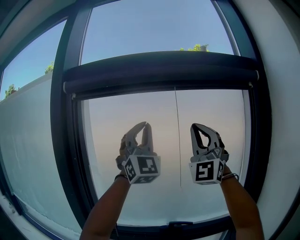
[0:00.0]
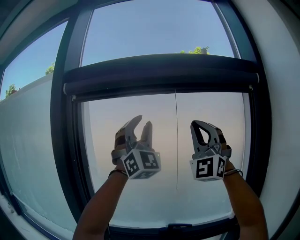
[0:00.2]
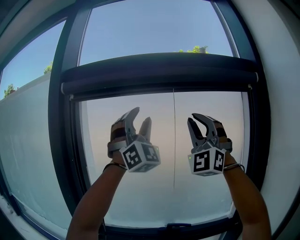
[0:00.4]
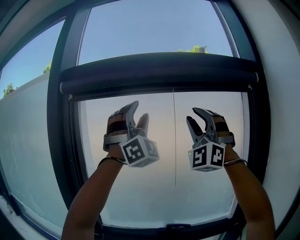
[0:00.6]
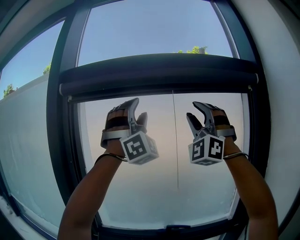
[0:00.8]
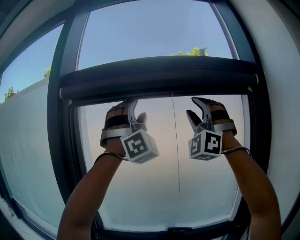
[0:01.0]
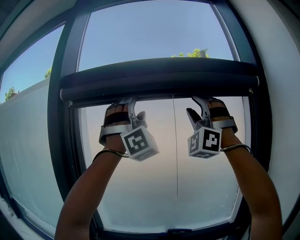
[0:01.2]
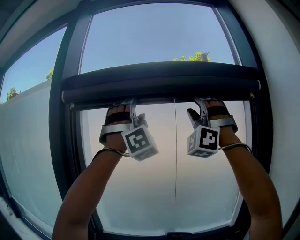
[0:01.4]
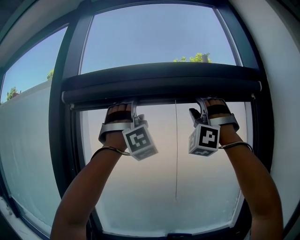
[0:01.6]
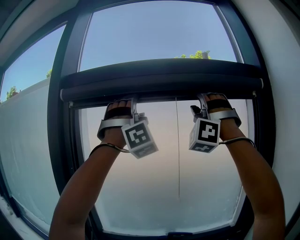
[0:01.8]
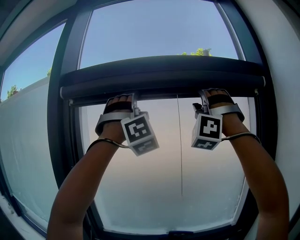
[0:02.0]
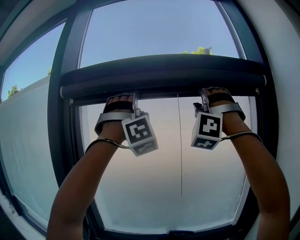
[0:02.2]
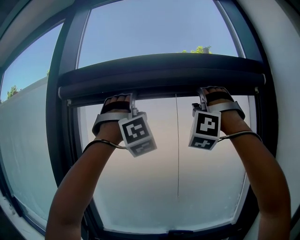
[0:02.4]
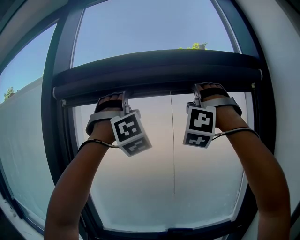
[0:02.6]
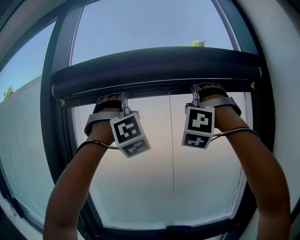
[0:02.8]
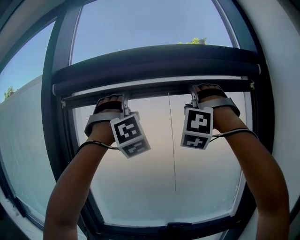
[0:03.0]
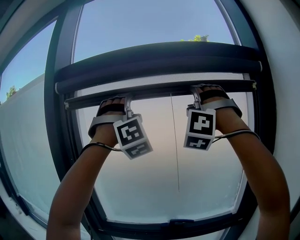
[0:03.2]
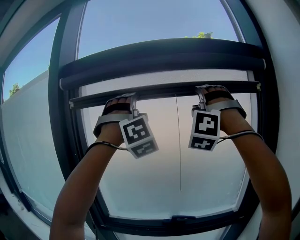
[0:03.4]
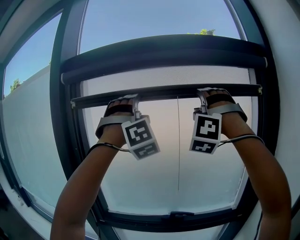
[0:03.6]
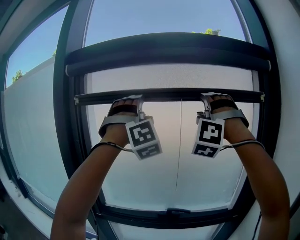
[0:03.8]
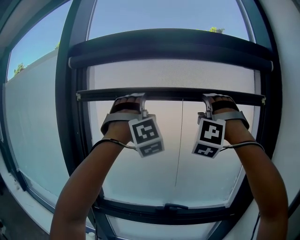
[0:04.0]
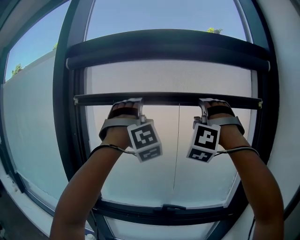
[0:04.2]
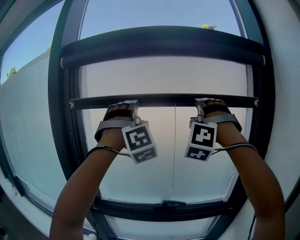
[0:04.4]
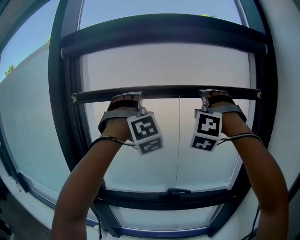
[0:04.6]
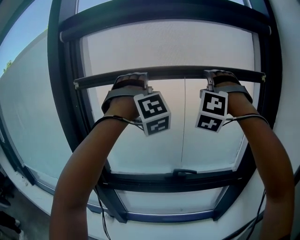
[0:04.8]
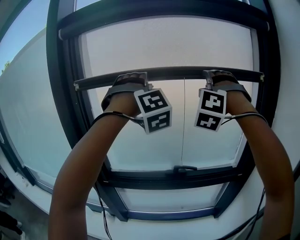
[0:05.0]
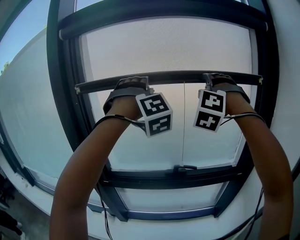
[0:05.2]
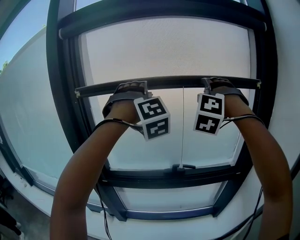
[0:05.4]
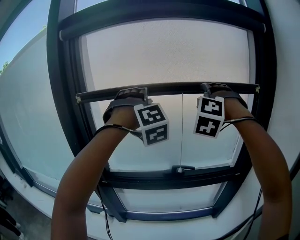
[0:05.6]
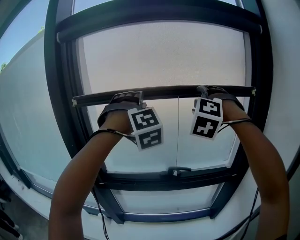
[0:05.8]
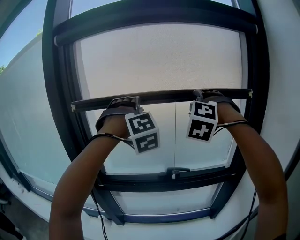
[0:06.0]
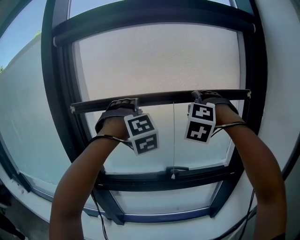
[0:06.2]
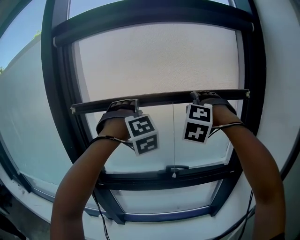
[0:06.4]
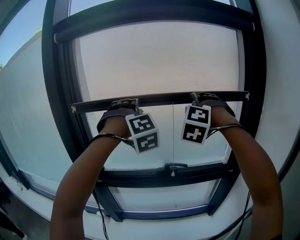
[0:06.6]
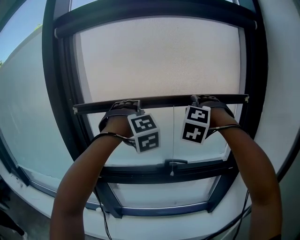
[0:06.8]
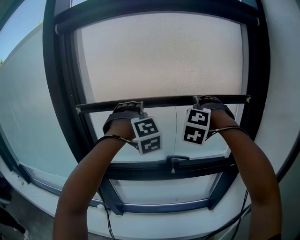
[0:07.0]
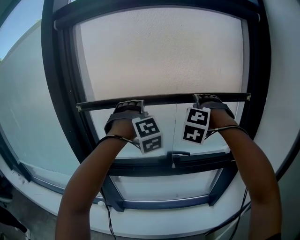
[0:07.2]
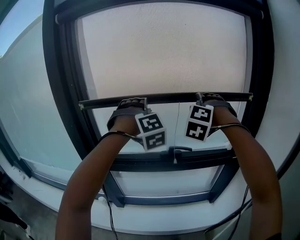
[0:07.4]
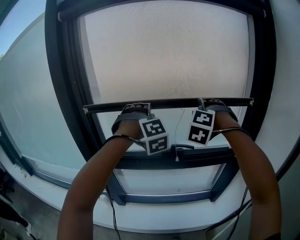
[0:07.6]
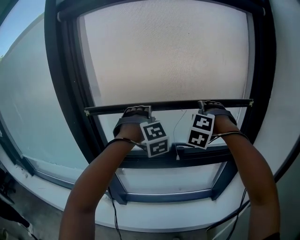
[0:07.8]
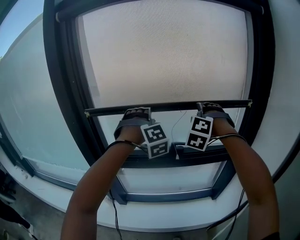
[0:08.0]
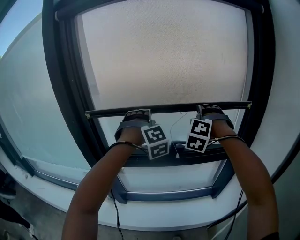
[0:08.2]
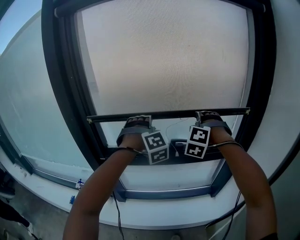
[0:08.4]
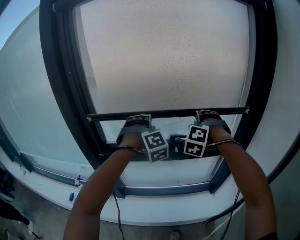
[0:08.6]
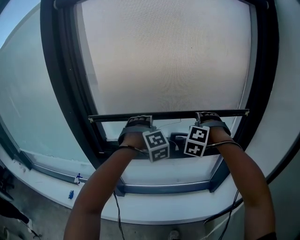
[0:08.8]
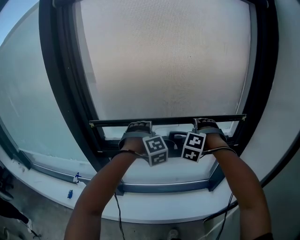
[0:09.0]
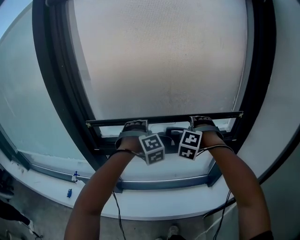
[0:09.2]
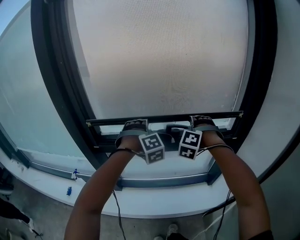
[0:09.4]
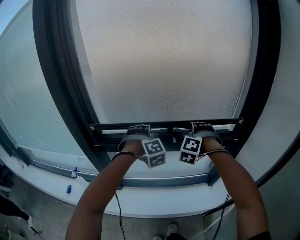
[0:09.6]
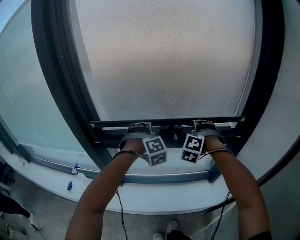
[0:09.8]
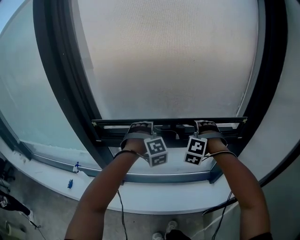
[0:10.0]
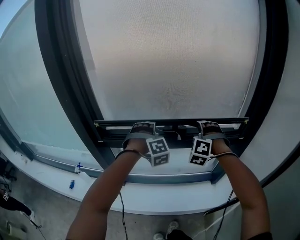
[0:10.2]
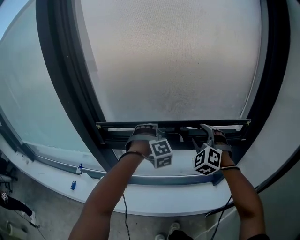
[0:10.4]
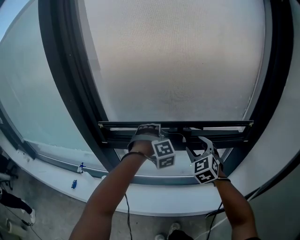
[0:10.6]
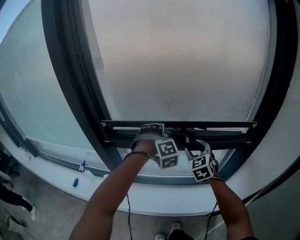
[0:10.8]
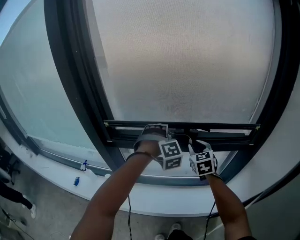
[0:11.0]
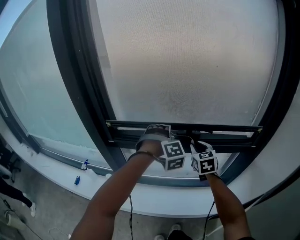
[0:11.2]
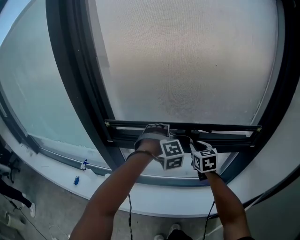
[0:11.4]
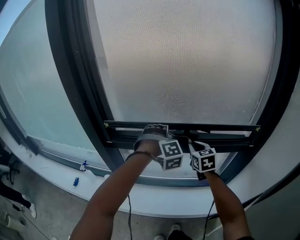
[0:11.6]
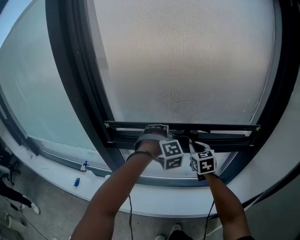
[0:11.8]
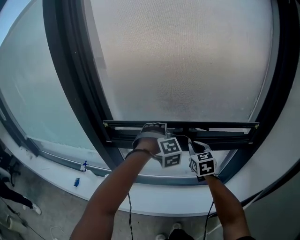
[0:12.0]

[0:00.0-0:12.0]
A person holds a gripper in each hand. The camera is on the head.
0:00.0 to 0:01.6: The right gripper travels upward and forward by approximately 15 cm, rotates around the line of its fingers by approximately 40 degrees, counterclockwise from behind, and opens up. The left gripper is displaced upward by roughly 10 cm, rotates around the line of its fingers by roughly 40 degrees, clockwise from behind, and opens up.
0:01.6 to 0:03.0: The grippers move only a little.
0:03.0 to 0:04.4: The two grippers go about 15 cm downward.
0:04.4 to 0:06.0: Both grippers travel together downward, some 10 cm. The right gripper swivels roughly 20 degrees, while the left gripper rotates some 20 degrees.
0:06.0 to 0:07.6: Both grippers travel together downward, approximately 15 cm.
0:07.6 to 0:09.0: The grippers both shift downward by roughly 15 cm.
0:09.0 to 0:10.4: The right gripper ends up roughly 5 cm from where it was, and rotates roughly 30 degrees, while the left gripper heads downward, covering about 5 cm.
0:10.4 to 0:12.0: The right gripper moves downward, roughly 10 cm, rotates around the line of its fingers by roughly 50 degrees, clockwise from behind, and closes.

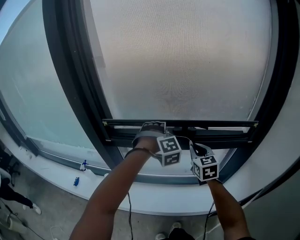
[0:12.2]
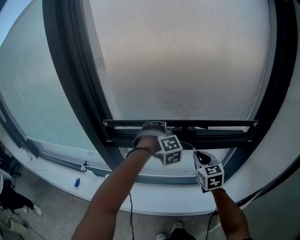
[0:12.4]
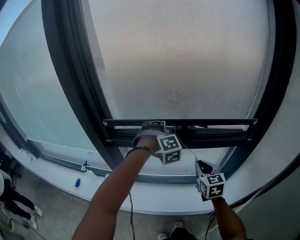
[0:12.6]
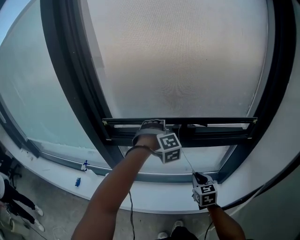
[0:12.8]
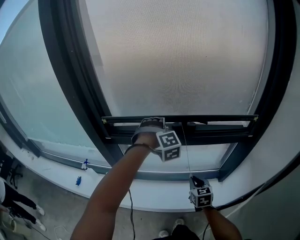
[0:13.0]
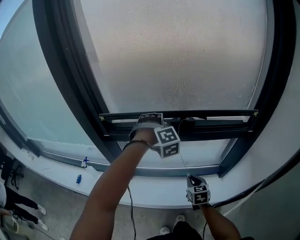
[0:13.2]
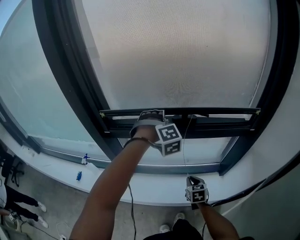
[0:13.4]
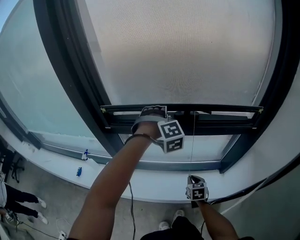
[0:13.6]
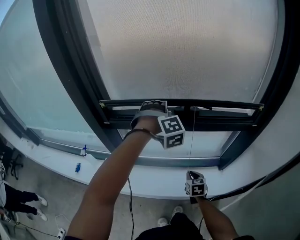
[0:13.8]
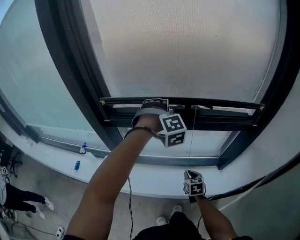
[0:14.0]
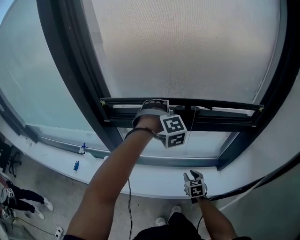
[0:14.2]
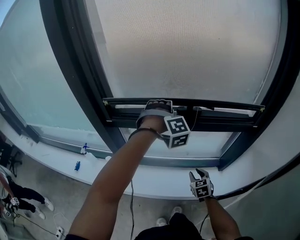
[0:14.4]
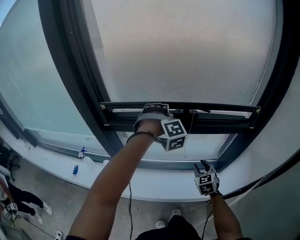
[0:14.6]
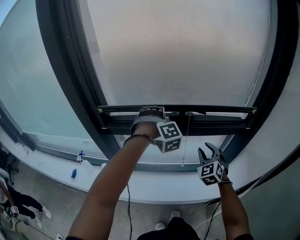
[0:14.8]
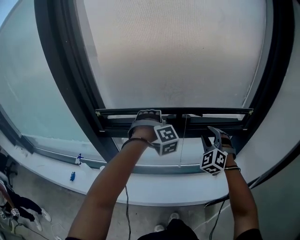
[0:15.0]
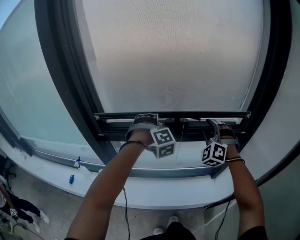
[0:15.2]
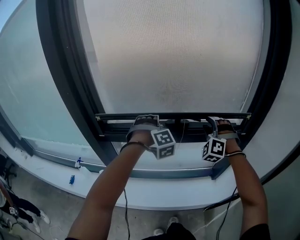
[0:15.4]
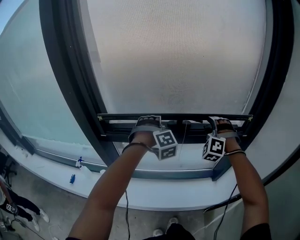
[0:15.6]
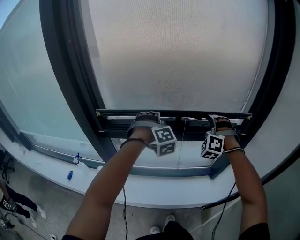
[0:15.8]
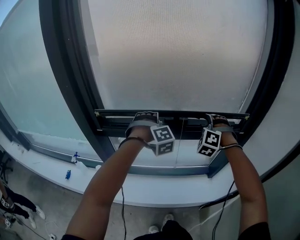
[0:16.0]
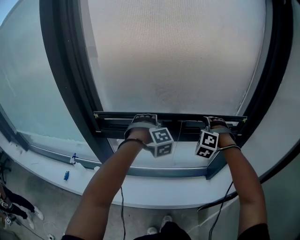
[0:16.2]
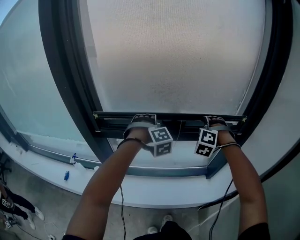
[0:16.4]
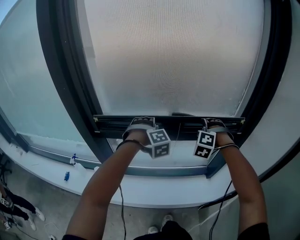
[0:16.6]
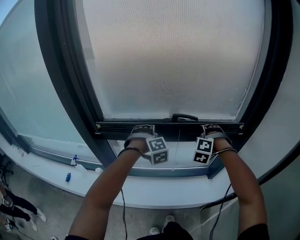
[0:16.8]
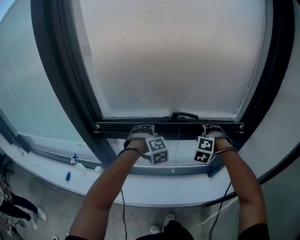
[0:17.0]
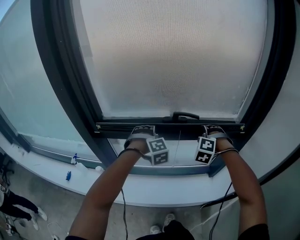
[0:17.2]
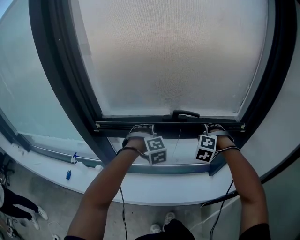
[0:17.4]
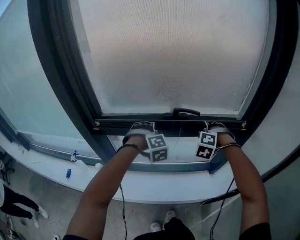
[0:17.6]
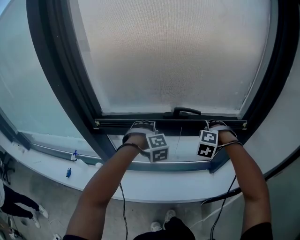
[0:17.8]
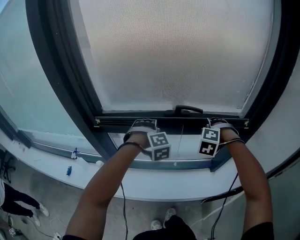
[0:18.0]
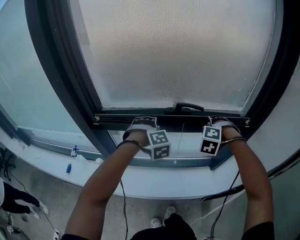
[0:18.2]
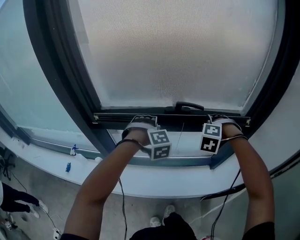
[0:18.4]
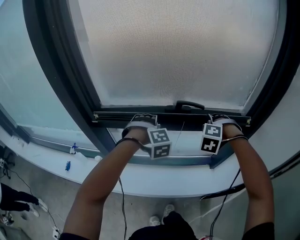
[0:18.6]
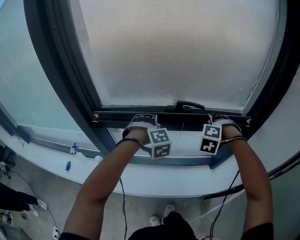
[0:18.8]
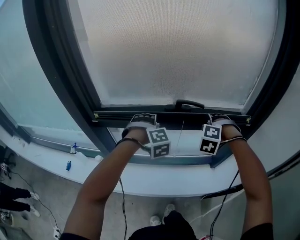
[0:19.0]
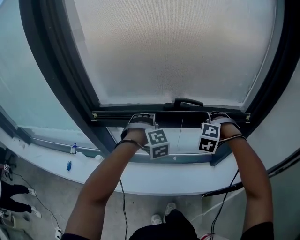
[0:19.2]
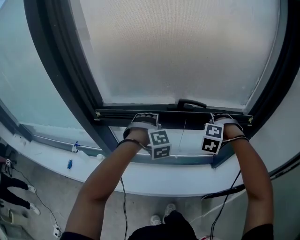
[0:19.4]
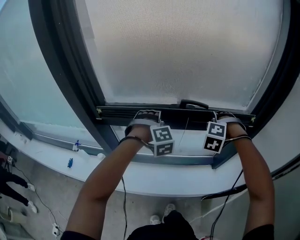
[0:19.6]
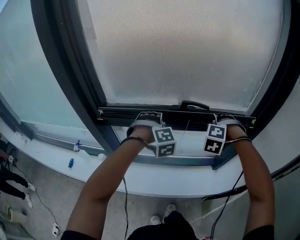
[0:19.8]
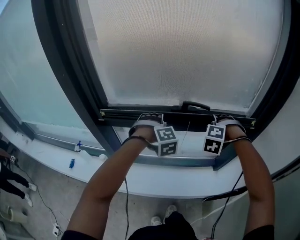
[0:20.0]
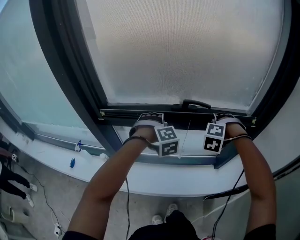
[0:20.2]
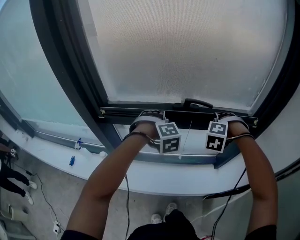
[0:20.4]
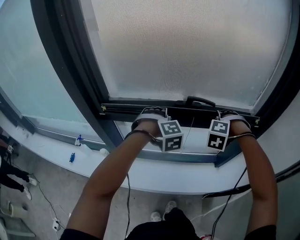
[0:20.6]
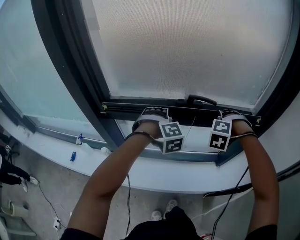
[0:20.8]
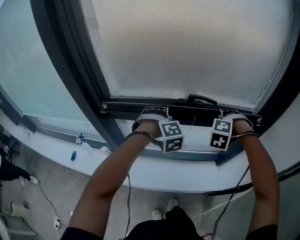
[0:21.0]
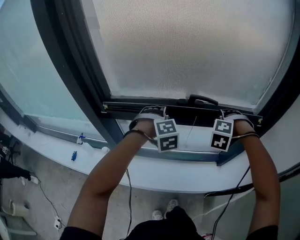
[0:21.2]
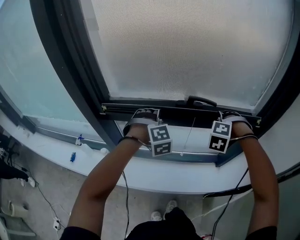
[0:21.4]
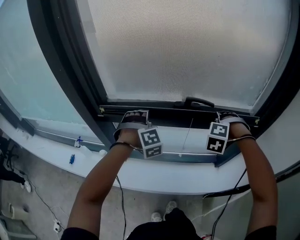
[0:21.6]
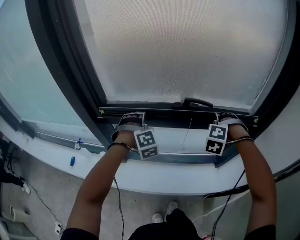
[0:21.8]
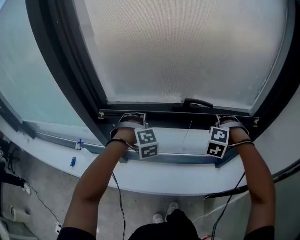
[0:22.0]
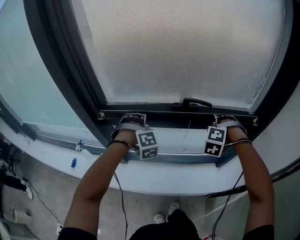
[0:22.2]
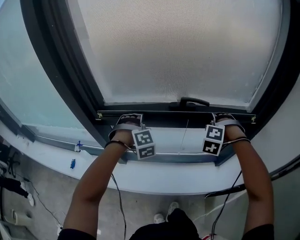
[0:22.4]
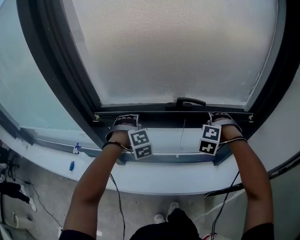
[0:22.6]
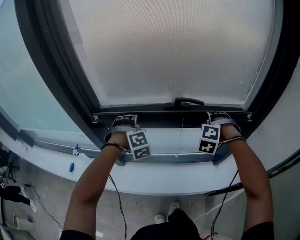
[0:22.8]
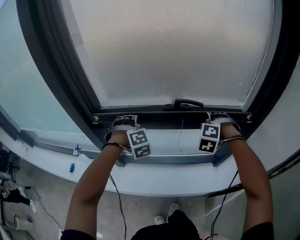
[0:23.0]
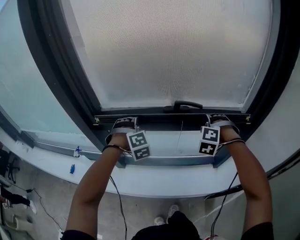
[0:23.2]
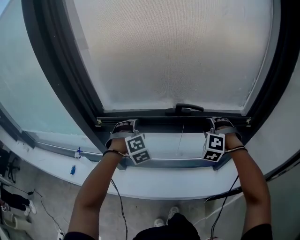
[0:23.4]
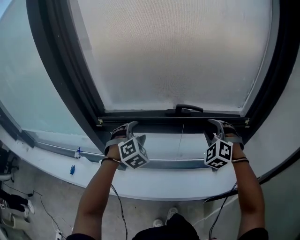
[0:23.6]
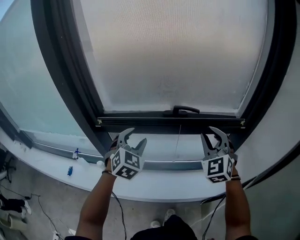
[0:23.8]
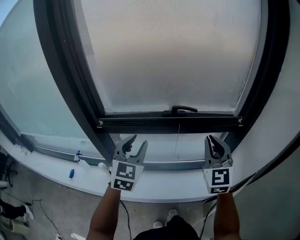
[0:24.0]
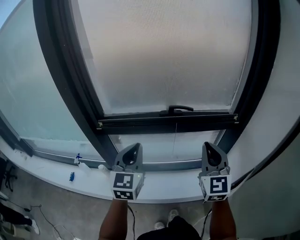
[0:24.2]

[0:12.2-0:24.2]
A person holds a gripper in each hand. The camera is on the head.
0:12.2 to 0:13.8: The right gripper moves downward and backward, about 30 cm, and swivels some 30 degrees.
0:13.8 to 0:15.2: The right gripper is displaced upward and forward by some 35 cm, twists roughly 70 degrees counterclockwise, seen from behind, and opens up.
0:15.2 to 0:16.6: The right gripper changes its angle by approximately 20 degrees.
0:16.6 to 0:18.2: The left gripper goes approximately 5 cm downward.
0:18.2 to 0:21.2: There are only small adjustments of the grippers.
0:21.2 to 0:22.6: The left gripper is displaced to the left by about 10 cm.
0:22.6 to 0:24.2: The two grippers go roughly 25 cm backward and upward. The right gripper tilts its fingers some 50 degrees upward, and closes up. The left gripper rolls counterclockwise, seen from behind, by about 70 degrees, and closes.
